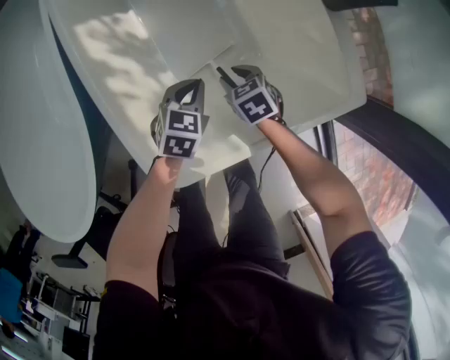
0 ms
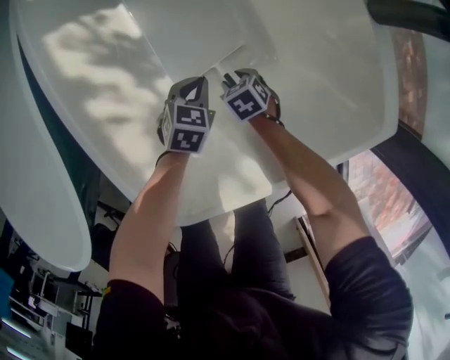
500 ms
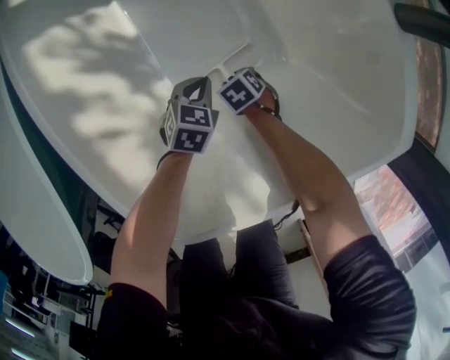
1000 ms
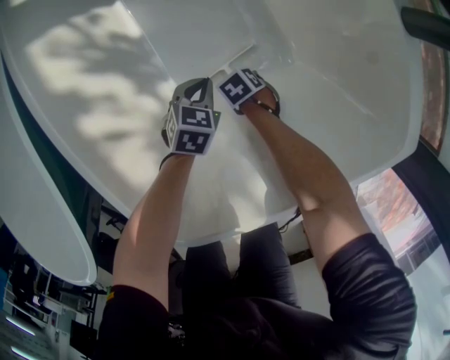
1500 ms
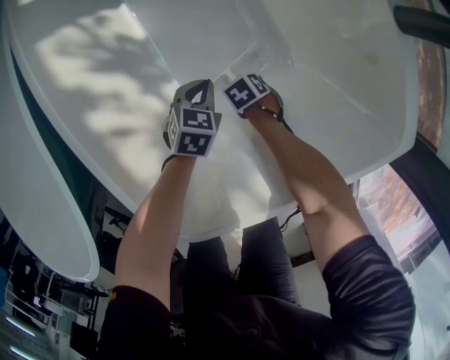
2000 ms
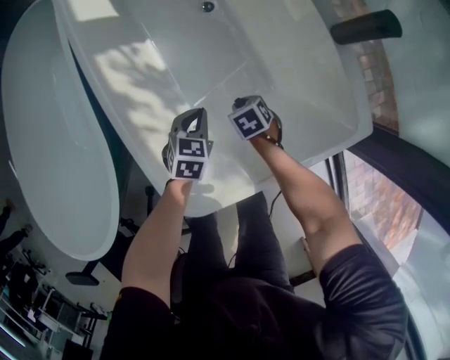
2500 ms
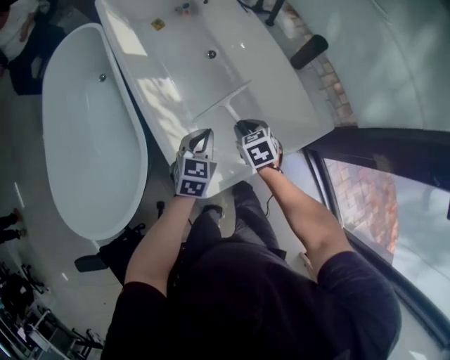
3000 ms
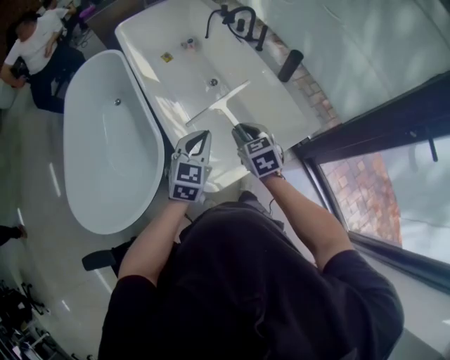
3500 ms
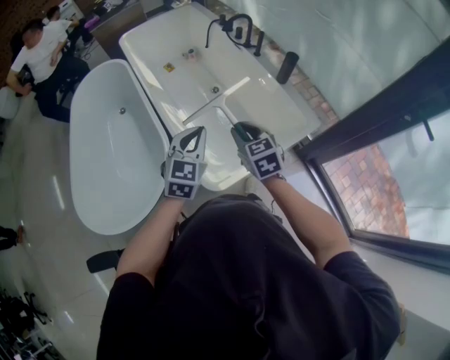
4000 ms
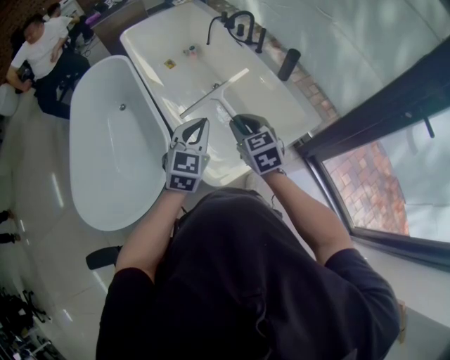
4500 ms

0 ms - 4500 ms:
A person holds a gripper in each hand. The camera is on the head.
0 ms - 2000 ms: The two grippers go about 20 cm downward. The right gripper rotates some 30 degrees.
2000 ms - 4500 ms: The two grippers go approximately 60 cm upward. The right gripper angles its fingers upward, by about 50 degrees. The left gripper angles its fingers upward, by about 40 degrees.

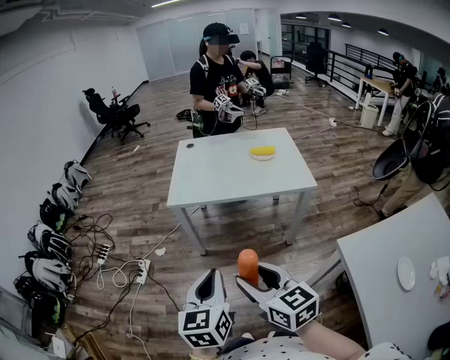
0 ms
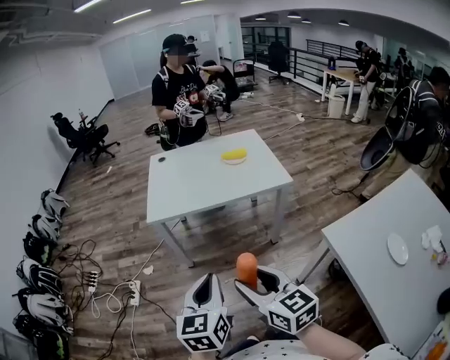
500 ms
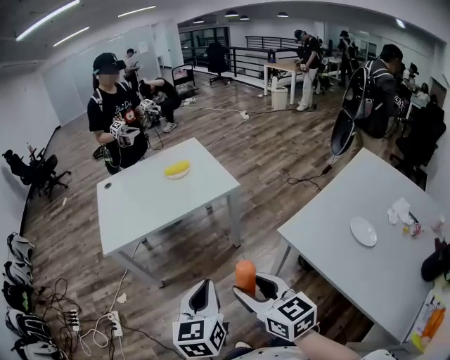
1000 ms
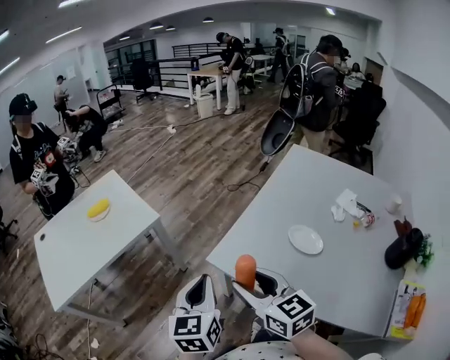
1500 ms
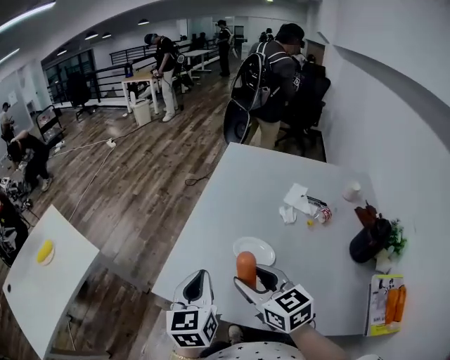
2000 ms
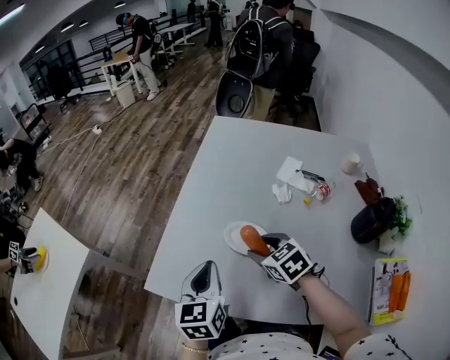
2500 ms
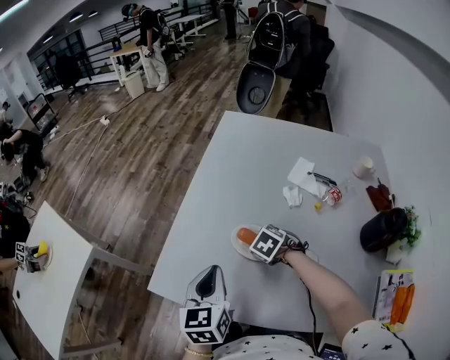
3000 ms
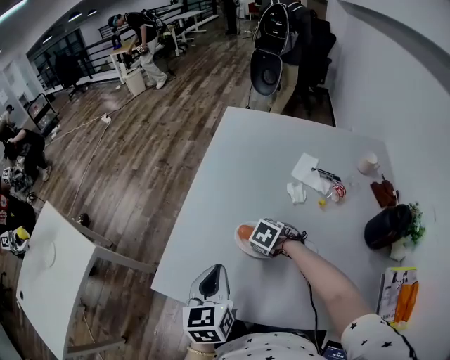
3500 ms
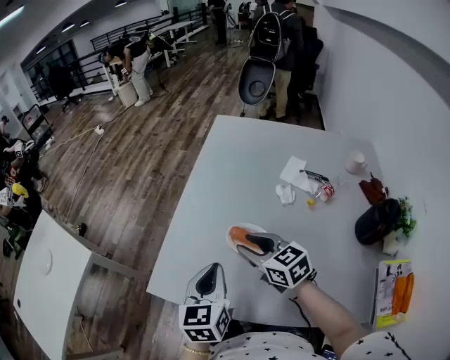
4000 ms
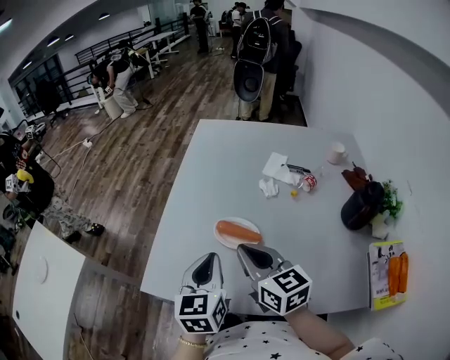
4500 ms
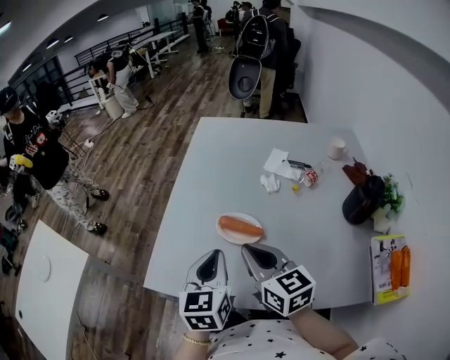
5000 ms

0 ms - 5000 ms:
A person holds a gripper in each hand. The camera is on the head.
0 ms - 2500 ms: The pair of grippers is taken some 70 cm. The left gripper changes its angle by approximately 70 degrees, while the right gripper points its fingers some 30 degrees further downward.
2500 ms - 5000 ms: The right gripper is displaced upward by approximately 10 cm, angles its fingers upward, by about 30 degrees, and closes up.

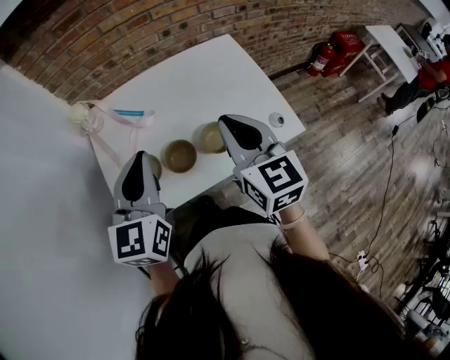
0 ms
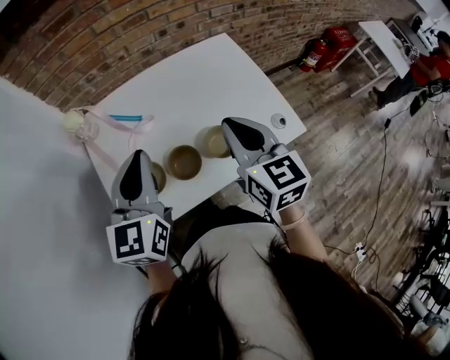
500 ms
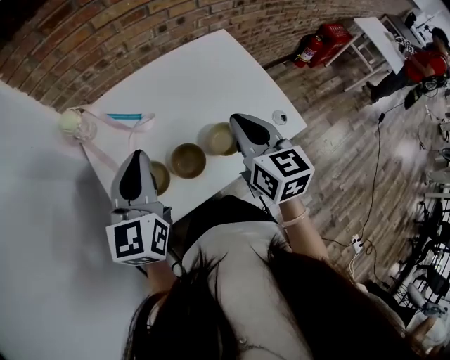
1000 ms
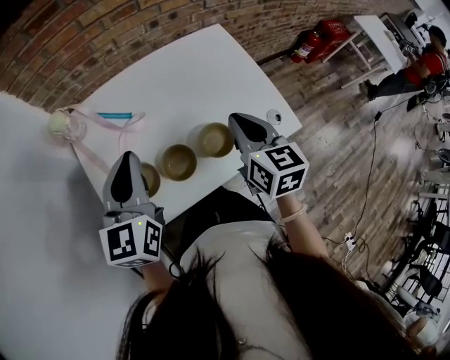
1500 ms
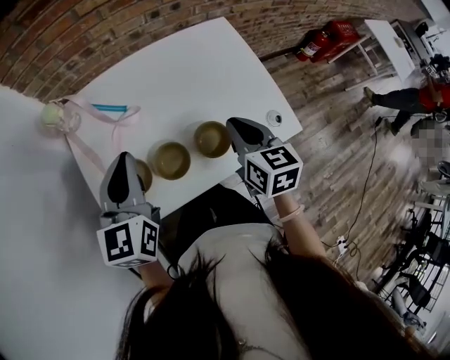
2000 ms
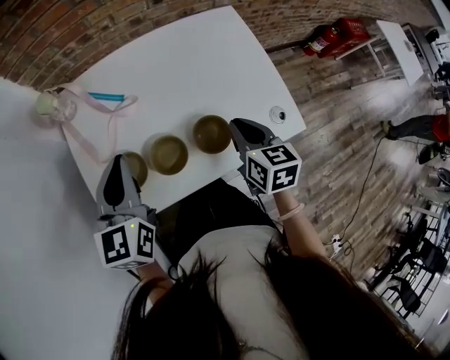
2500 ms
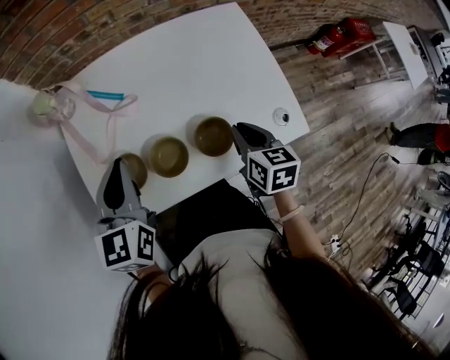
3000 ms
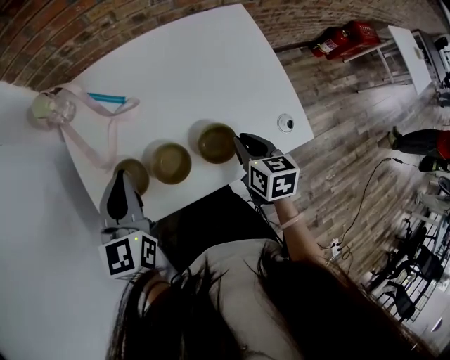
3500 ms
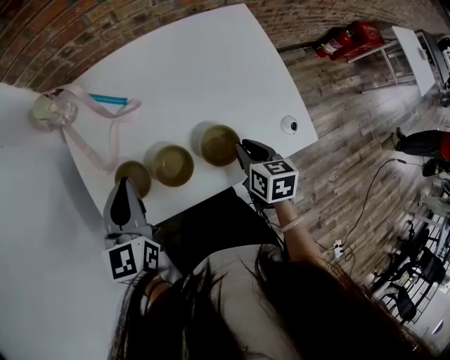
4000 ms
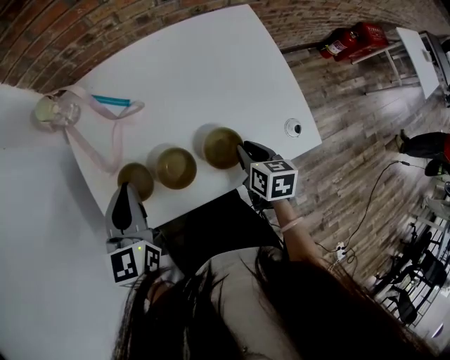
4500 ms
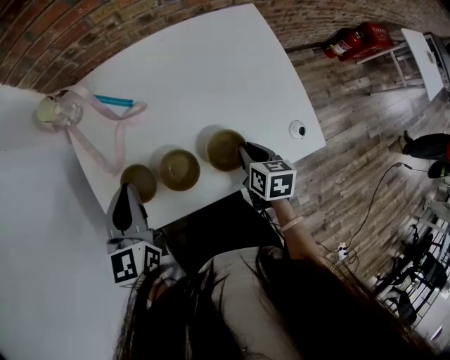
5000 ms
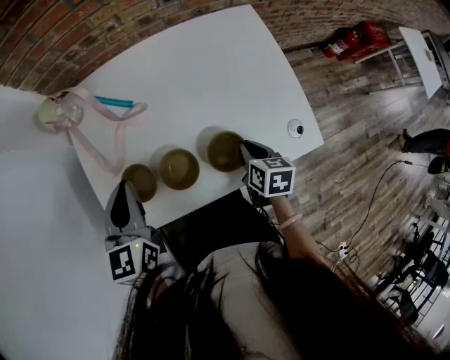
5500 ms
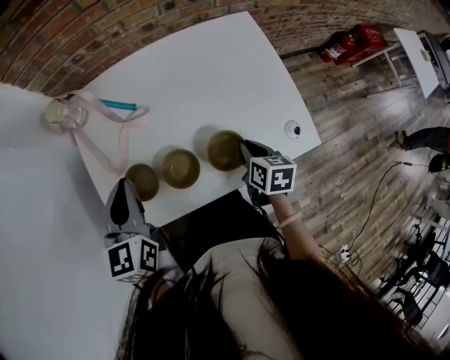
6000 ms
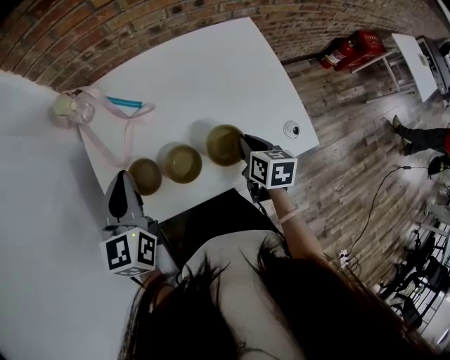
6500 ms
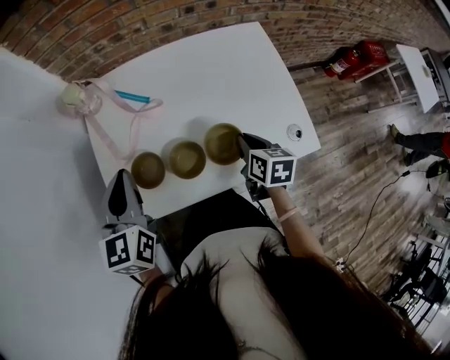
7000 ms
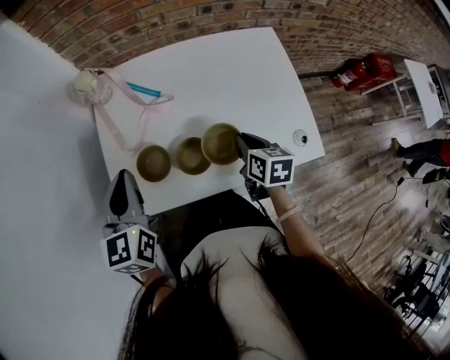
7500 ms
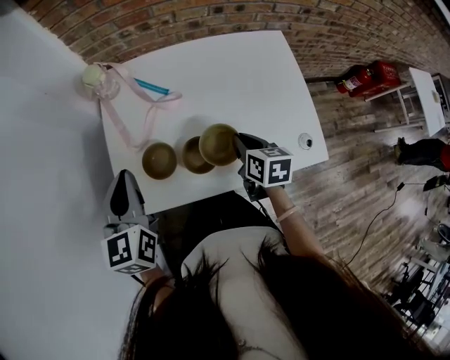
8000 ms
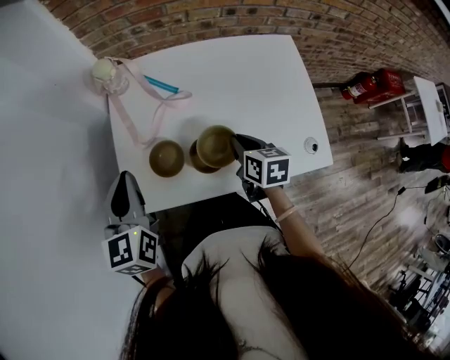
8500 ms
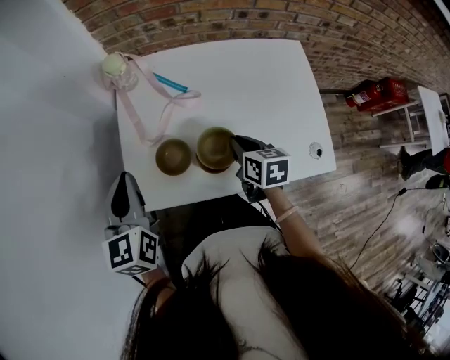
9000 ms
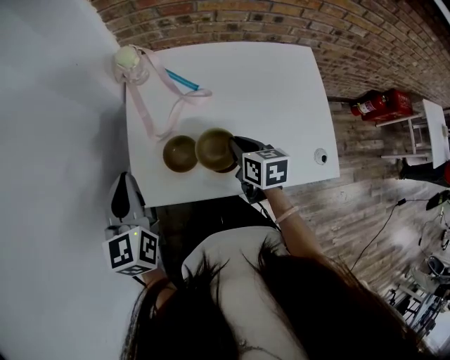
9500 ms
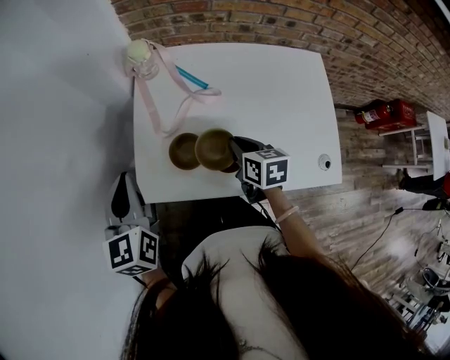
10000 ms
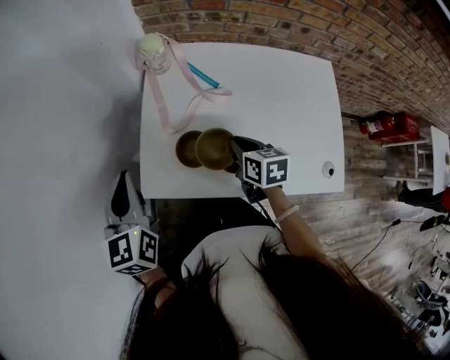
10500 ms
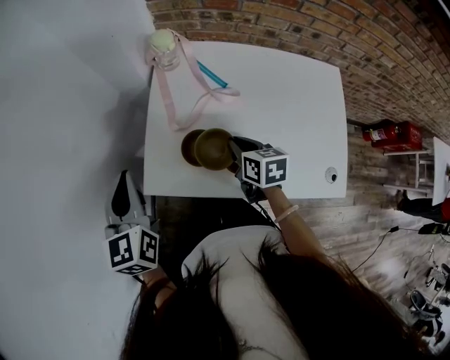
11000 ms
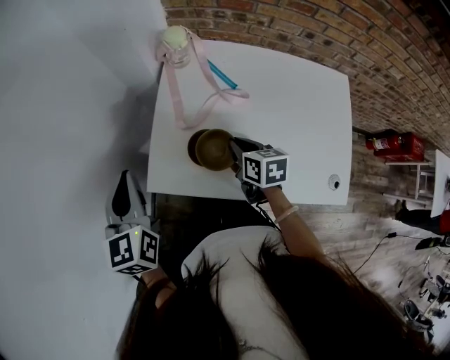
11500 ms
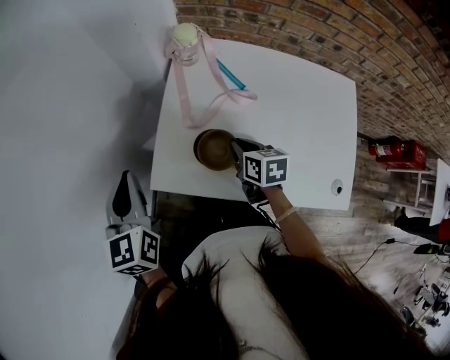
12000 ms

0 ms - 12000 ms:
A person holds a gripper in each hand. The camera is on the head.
0 ms - 2000 ms: The right gripper heads downward and forward, covering about 15 cm, and turns by some 20 degrees; the left gripper heads forward and downward, covering some 10 cm.
2000 ms - 4000 ms: The right gripper heads downward, covering some 15 cm. The left gripper shifts some 5 cm downward.
4000 ms - 6000 ms: The grippers stay close to where they were, moving slightly.
6000 ms - 8000 ms: Both grippers move to the left, about 10 cm.
8000 ms - 10000 ms: Both grippers move to the left, roughly 10 cm.
10000 ms - 12000 ms: The two grippers go some 5 cm to the left.

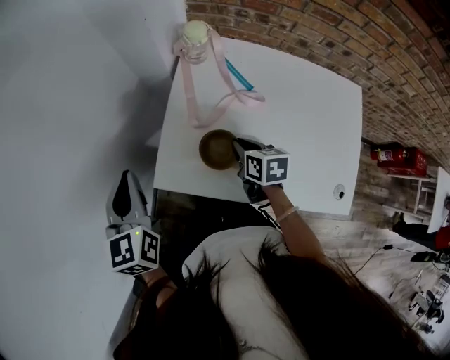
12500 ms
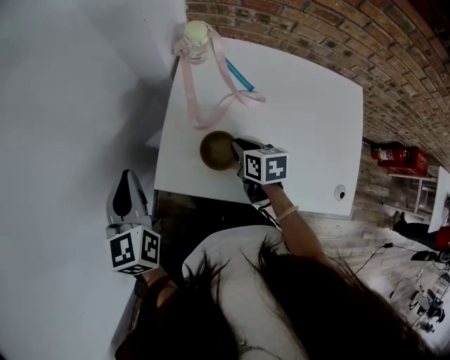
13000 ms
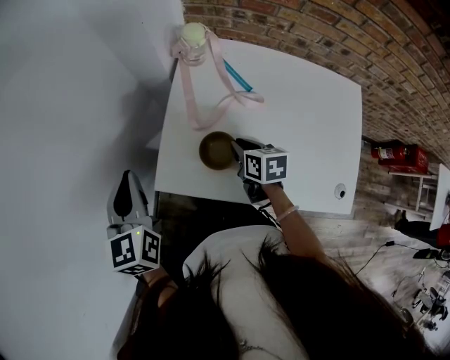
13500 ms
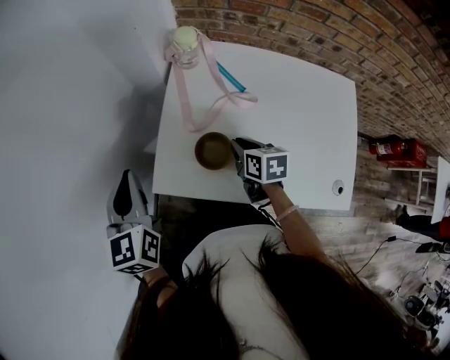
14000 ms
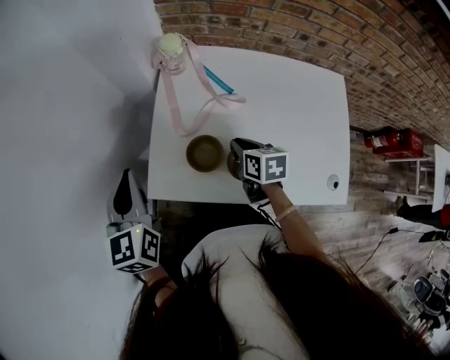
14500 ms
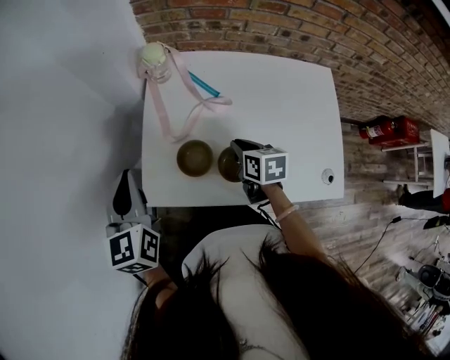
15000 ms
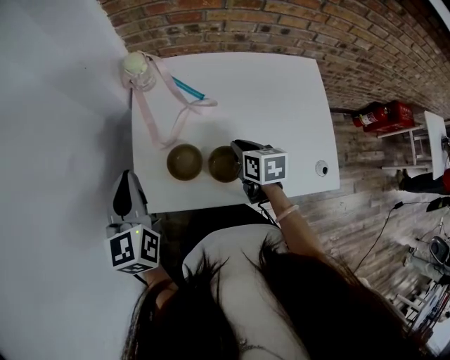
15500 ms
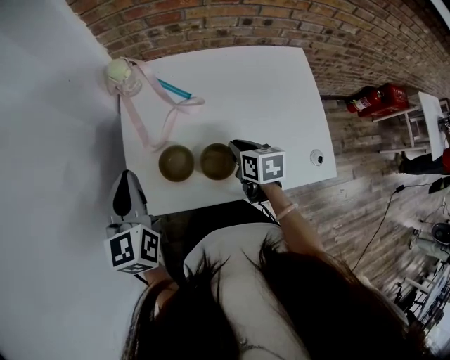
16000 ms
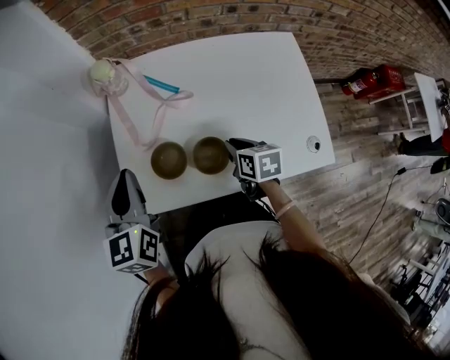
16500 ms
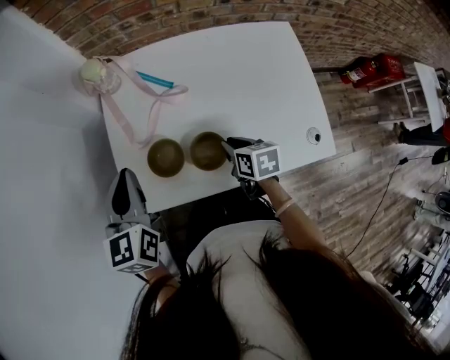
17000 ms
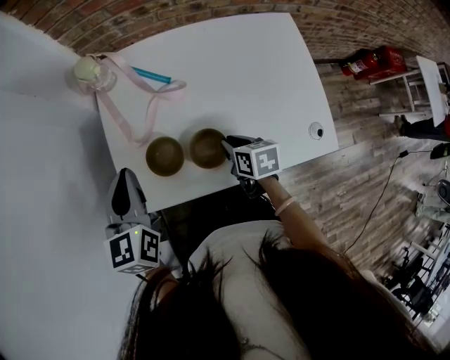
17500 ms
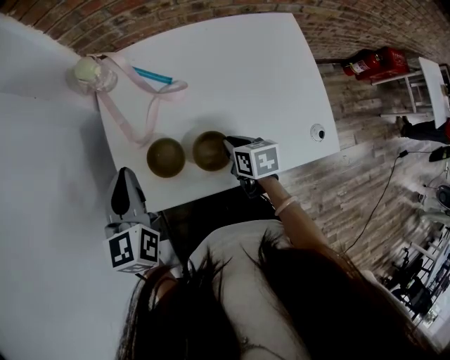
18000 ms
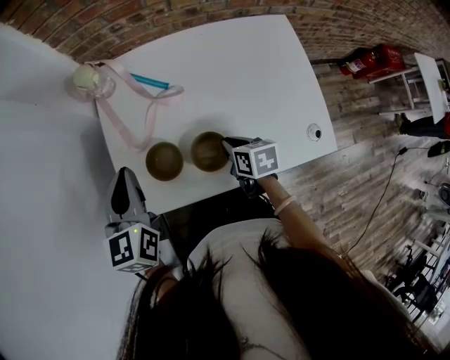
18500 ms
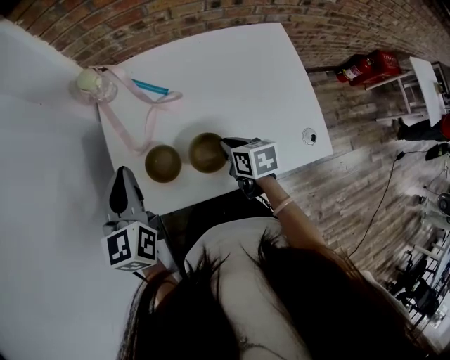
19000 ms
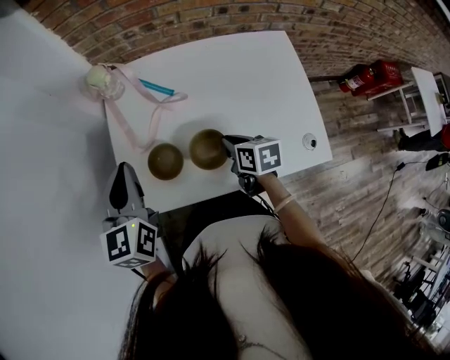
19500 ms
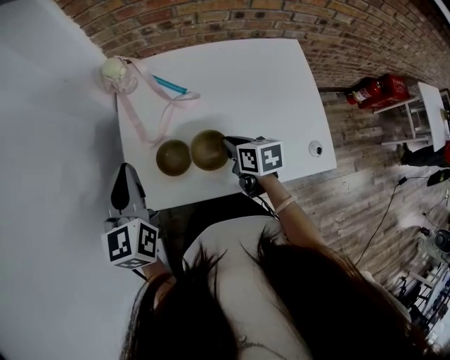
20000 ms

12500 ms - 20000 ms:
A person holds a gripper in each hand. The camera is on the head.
12500 ms - 14500 ms: The grippers stay close to where they were, moving slightly.
14500 ms - 16500 ms: The left gripper moves to the right, about 10 cm. Meanwhile the right gripper is displaced to the right and backward by roughly 10 cm.
16500 ms - 18000 ms: The grippers make only small movements.
18000 ms - 20000 ms: The right gripper travels upward by about 5 cm; the left gripper ends up about 5 cm from where it was.
